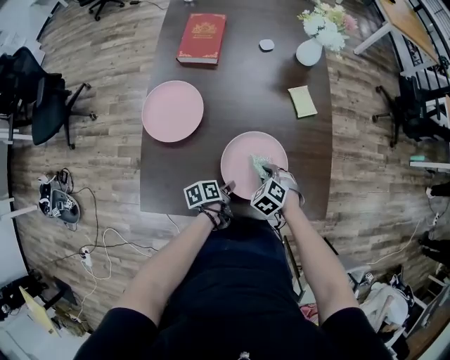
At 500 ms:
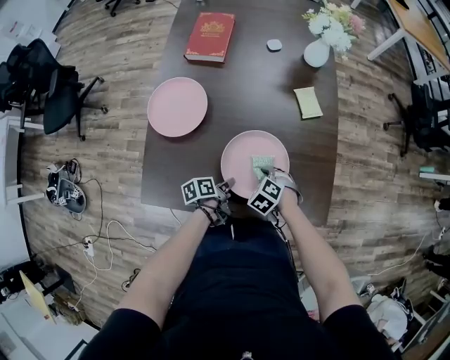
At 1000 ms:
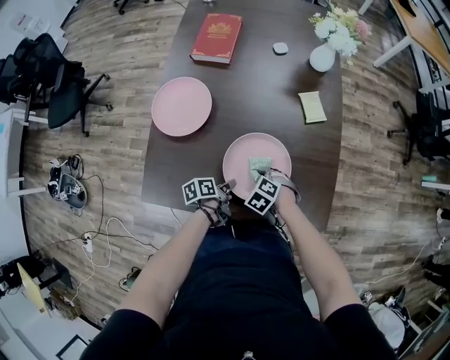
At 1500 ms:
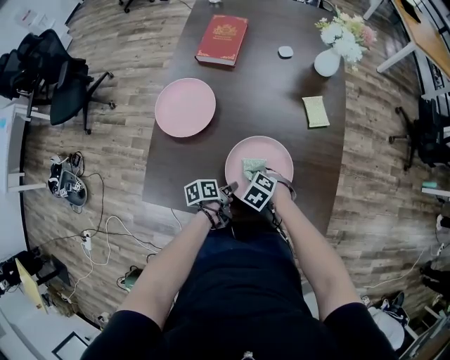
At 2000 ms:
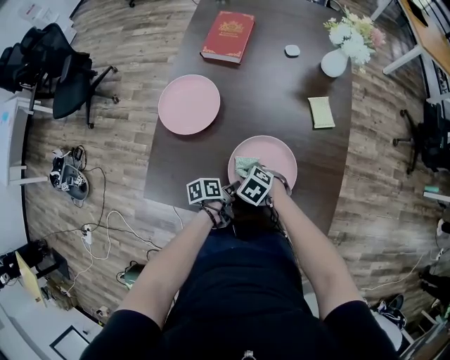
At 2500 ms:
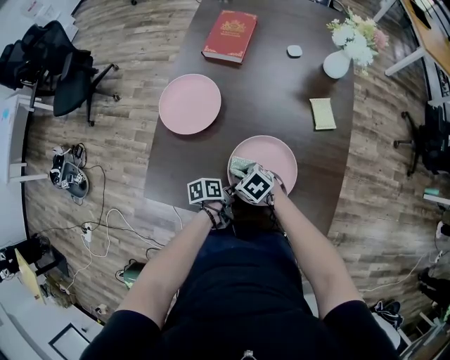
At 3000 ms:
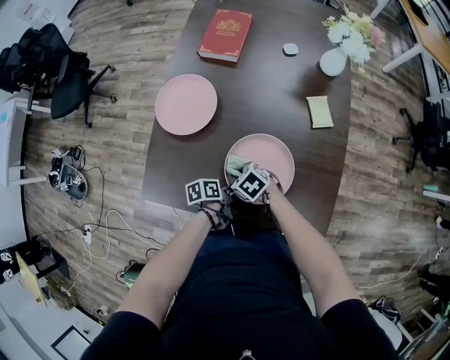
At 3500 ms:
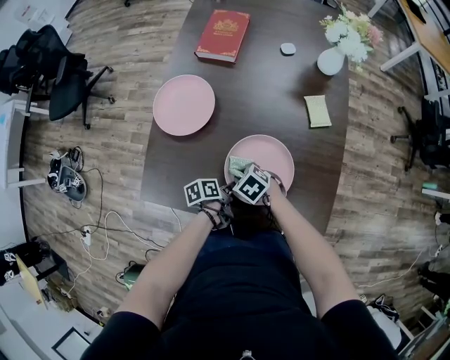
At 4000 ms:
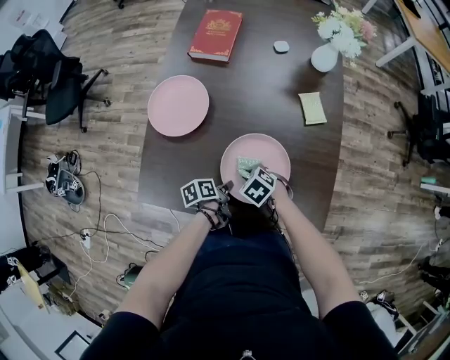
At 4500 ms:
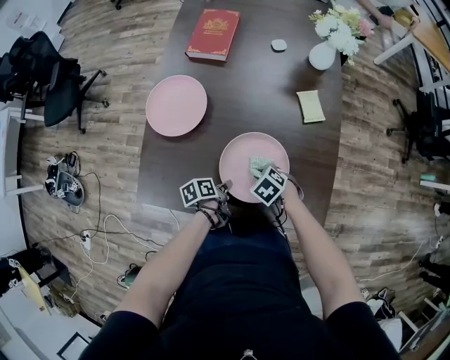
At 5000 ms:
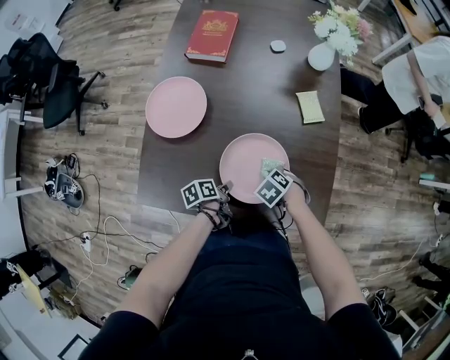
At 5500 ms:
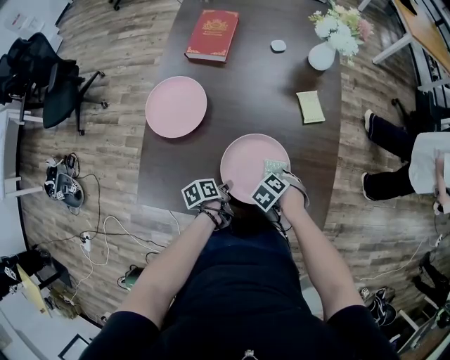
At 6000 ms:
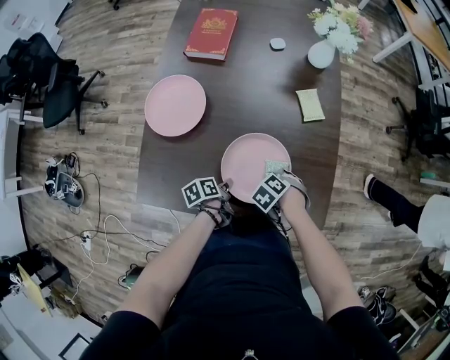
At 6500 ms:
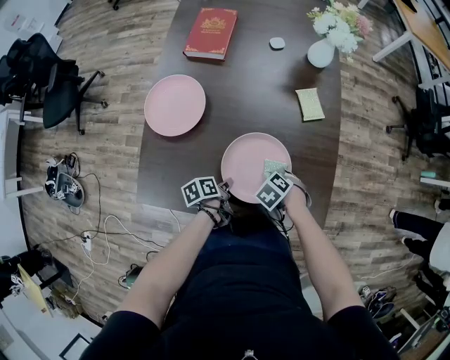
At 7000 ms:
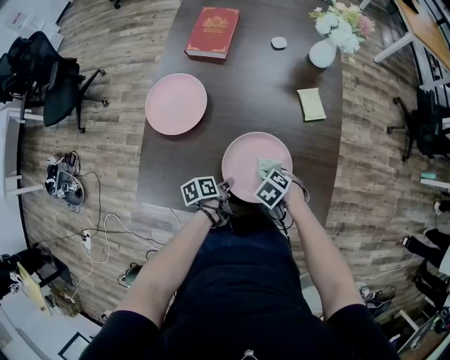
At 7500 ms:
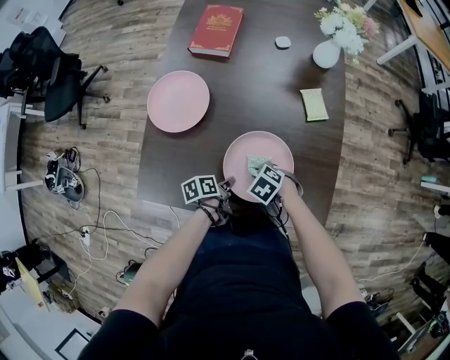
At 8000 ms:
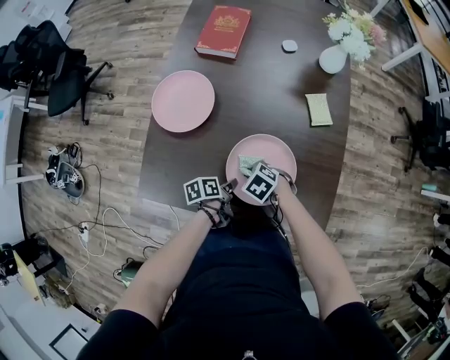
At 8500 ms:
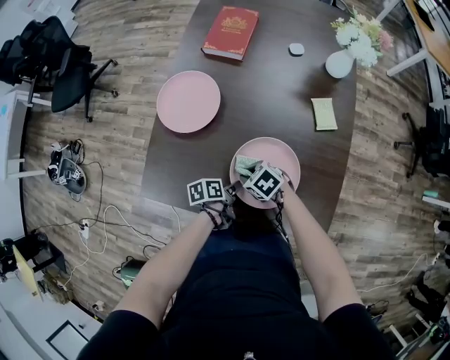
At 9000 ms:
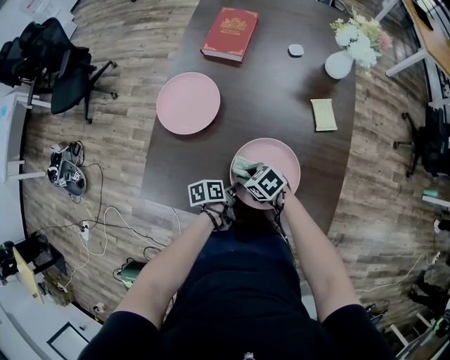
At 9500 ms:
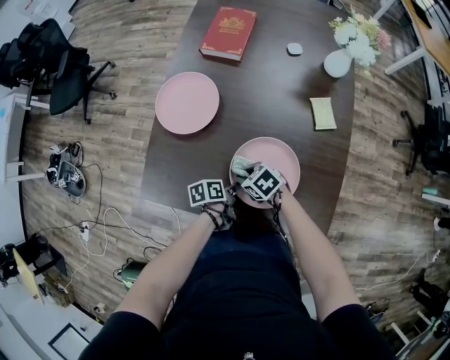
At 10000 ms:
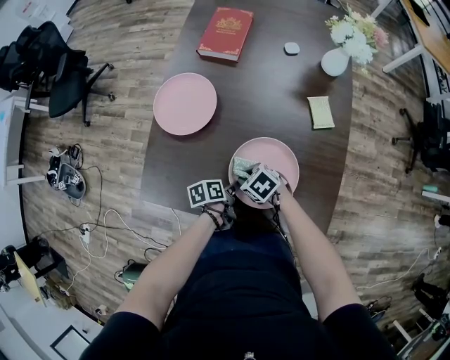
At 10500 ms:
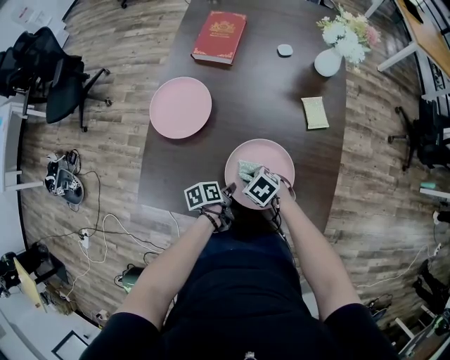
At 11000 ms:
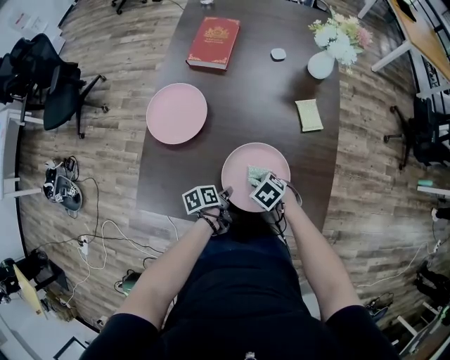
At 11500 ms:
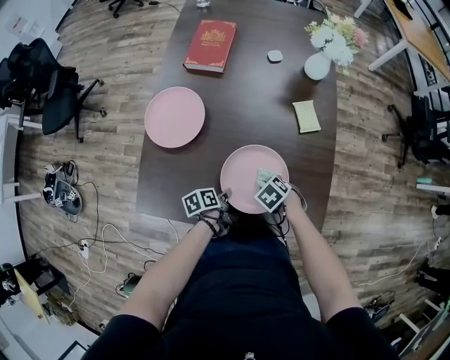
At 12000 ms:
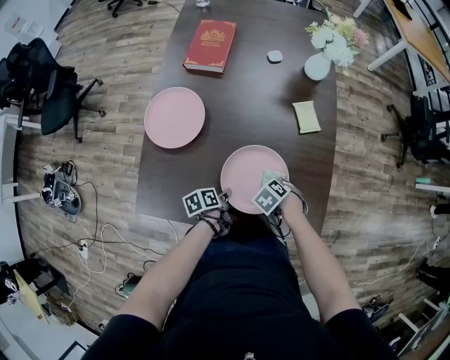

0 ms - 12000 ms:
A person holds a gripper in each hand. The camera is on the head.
0 ms - 2000 ms: The right gripper moves approximately 10 cm, and turns by about 30 degrees.
4000 ms - 6000 ms: The right gripper changes place by some 10 cm, and turns by roughly 20 degrees.
6000 ms - 8000 ms: The right gripper ends up some 10 cm from where it was, and turns by roughly 30 degrees.
10000 ms - 12000 ms: The right gripper ends up some 15 cm from where it was, and rotates about 30 degrees.

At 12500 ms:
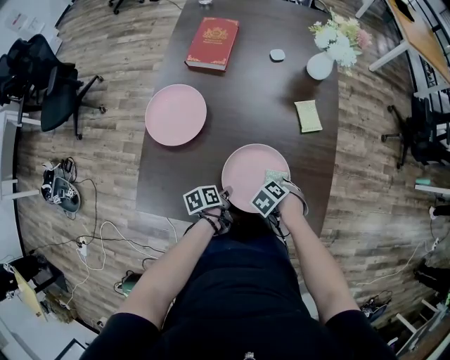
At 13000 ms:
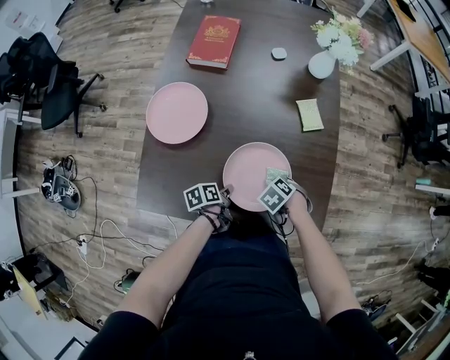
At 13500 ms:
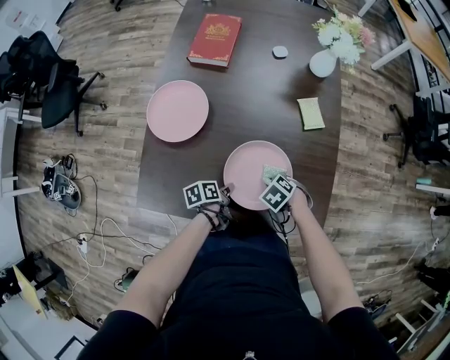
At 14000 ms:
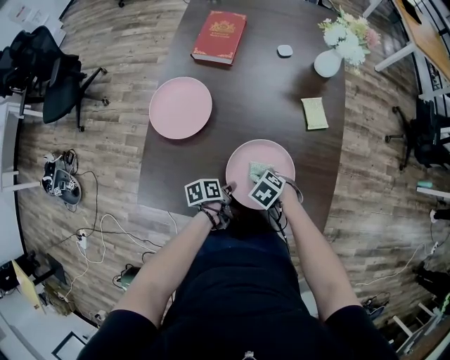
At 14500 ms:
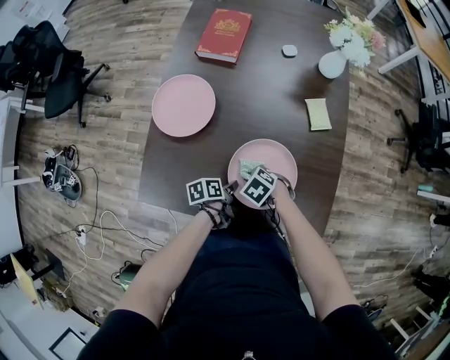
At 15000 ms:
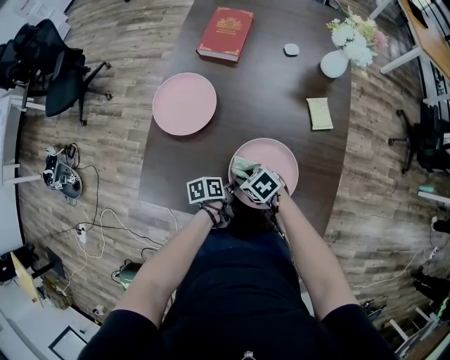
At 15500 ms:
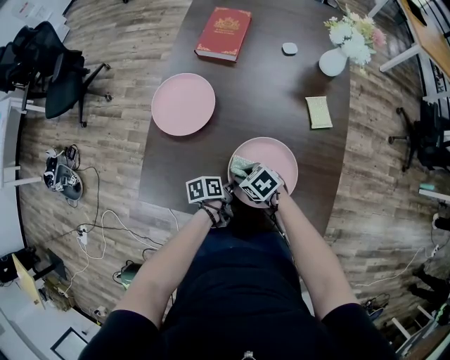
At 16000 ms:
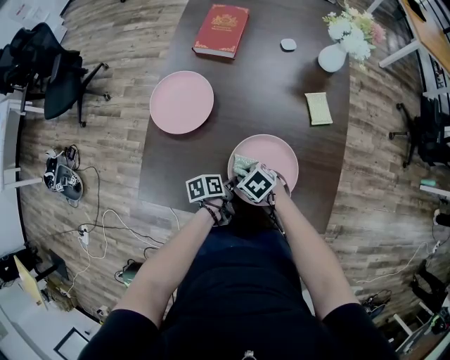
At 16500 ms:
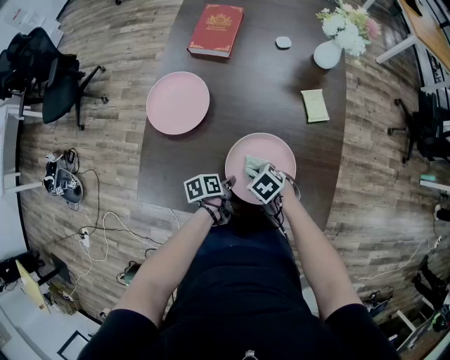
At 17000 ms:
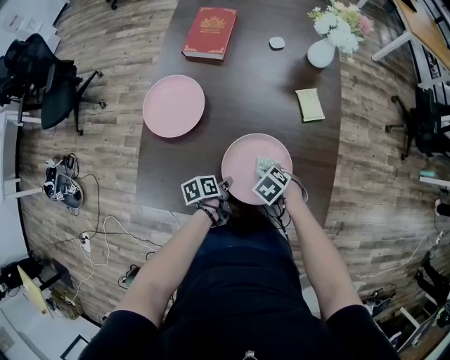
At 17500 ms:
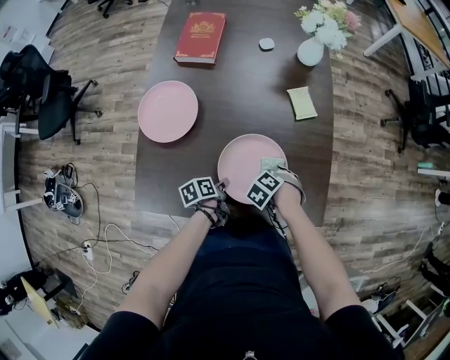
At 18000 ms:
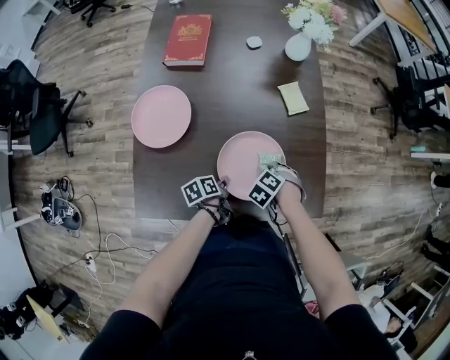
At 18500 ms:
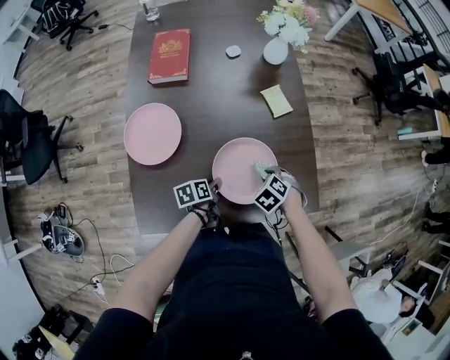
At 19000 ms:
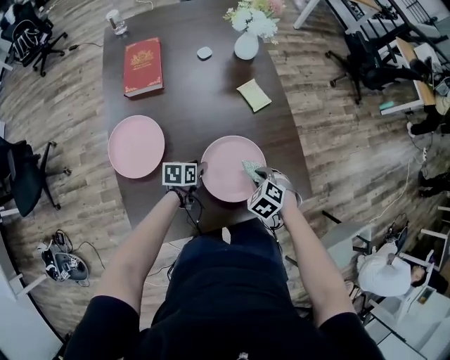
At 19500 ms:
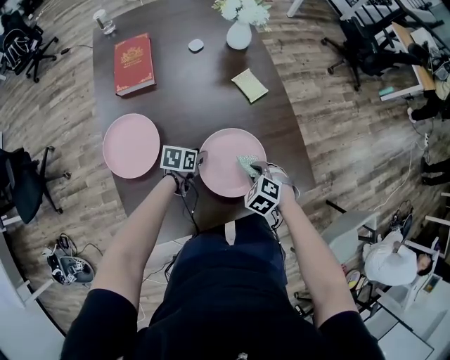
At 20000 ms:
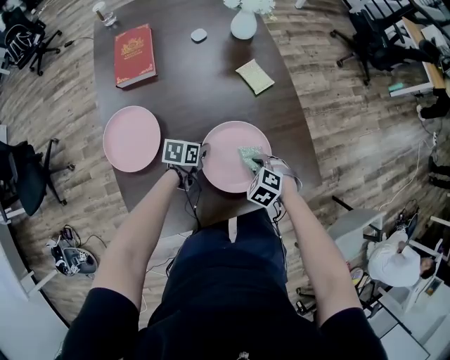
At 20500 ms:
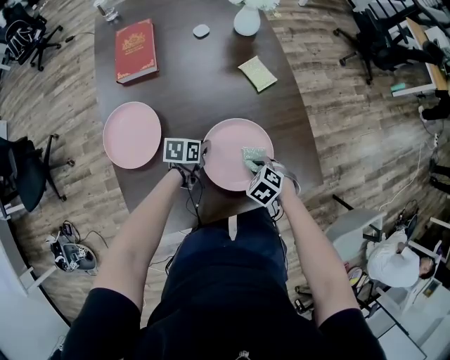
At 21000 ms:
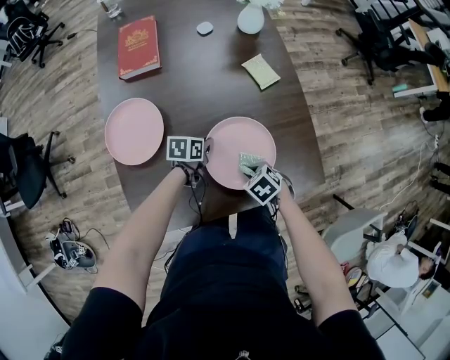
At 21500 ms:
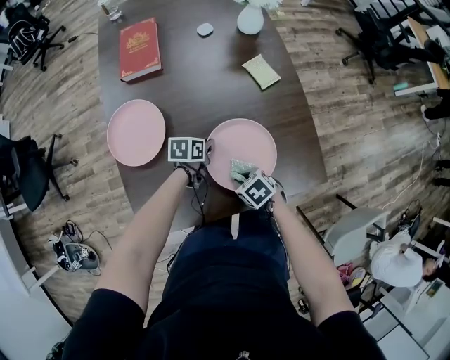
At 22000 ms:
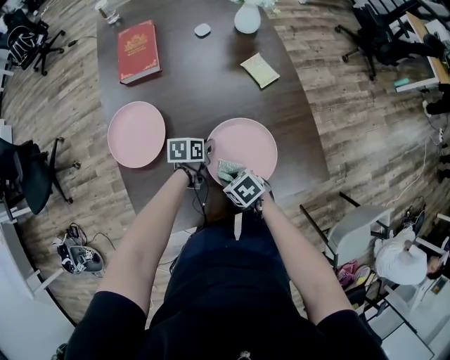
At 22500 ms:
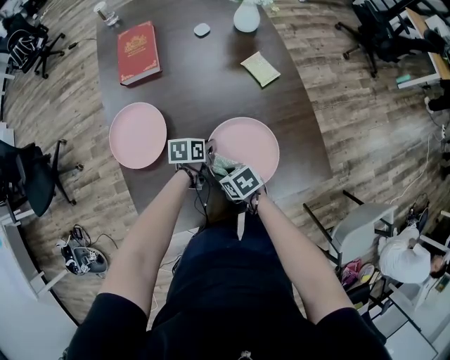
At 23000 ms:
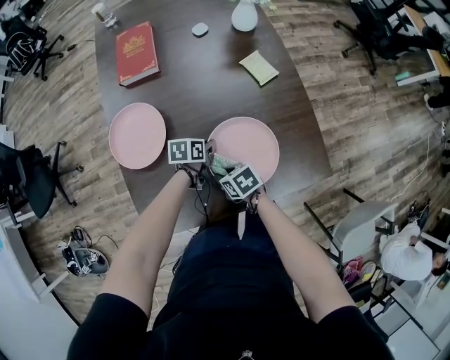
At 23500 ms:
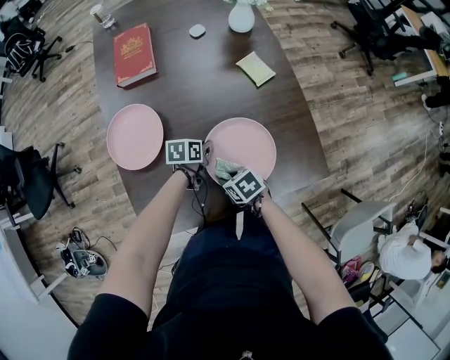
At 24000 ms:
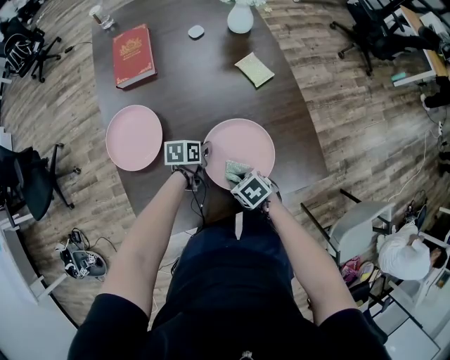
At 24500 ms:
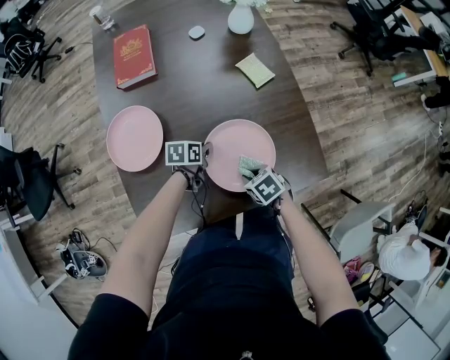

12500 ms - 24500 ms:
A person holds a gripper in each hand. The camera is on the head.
12500 ms - 14500 ms: The right gripper moves about 10 cm, and changes its angle by about 20 degrees.
16500 ms - 18500 ms: The right gripper changes place by some 10 cm, and changes its angle by roughly 30 degrees.
18500 ms - 20500 ms: The right gripper shifts by roughly 5 cm.
20500 ms - 22500 ms: The right gripper shifts by roughly 15 cm, and swivels about 40 degrees.
22500 ms - 24500 ms: The right gripper shifts by roughly 10 cm.

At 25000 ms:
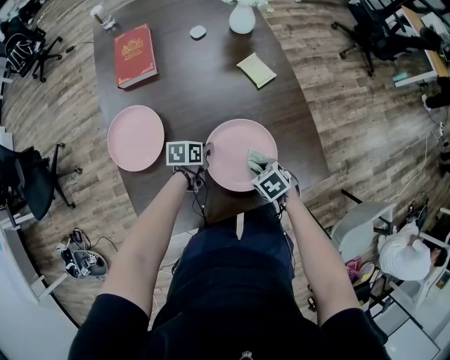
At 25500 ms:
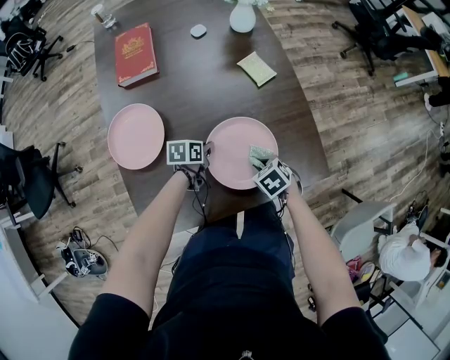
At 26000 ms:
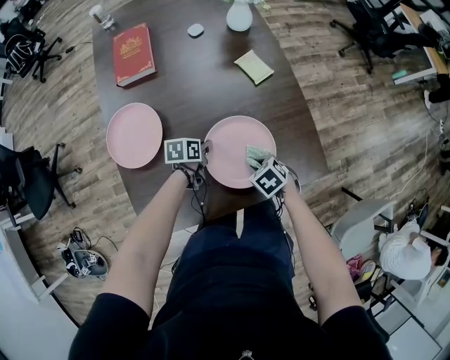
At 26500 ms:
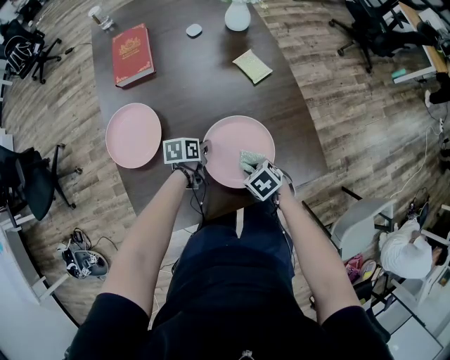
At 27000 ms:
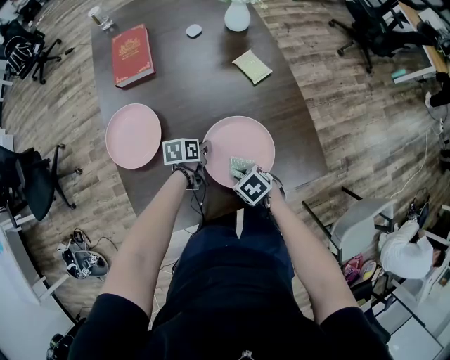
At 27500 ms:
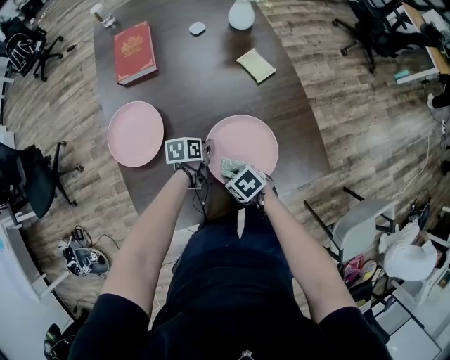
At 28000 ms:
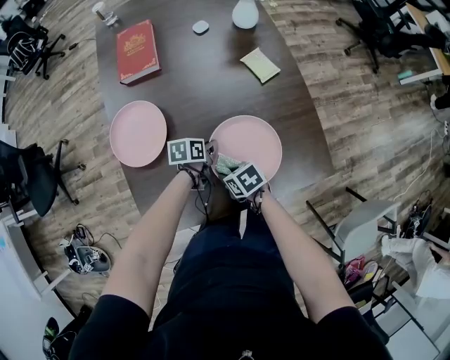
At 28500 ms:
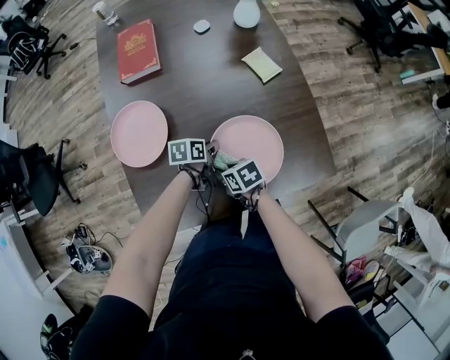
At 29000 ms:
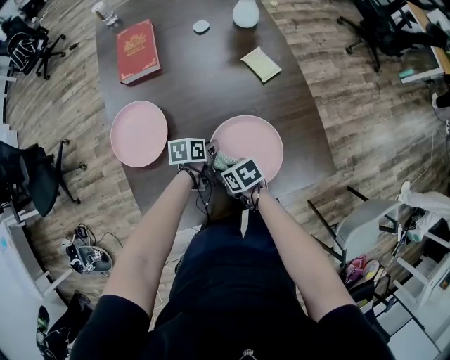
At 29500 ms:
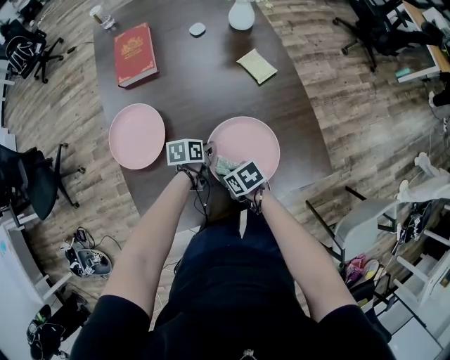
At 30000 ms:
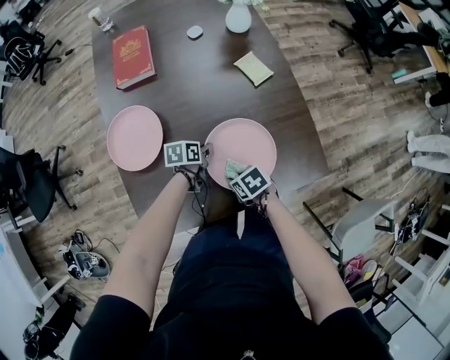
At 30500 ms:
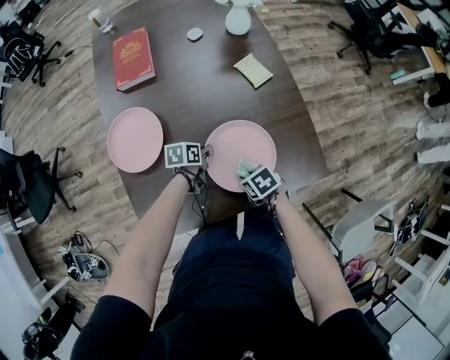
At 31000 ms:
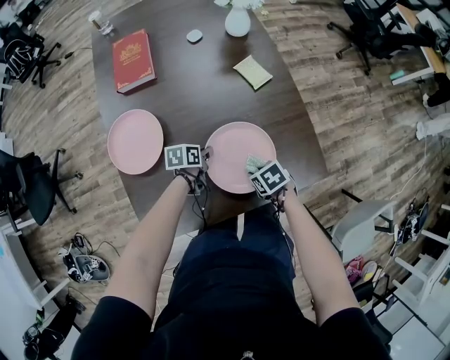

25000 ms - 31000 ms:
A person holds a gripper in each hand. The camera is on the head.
25000 ms - 27000 ms: The right gripper changes place by some 5 cm.
27000 ms - 29000 ms: The right gripper moves some 10 cm, and swivels roughly 20 degrees.
29000 ms - 31000 ms: The right gripper shifts by about 15 cm.
